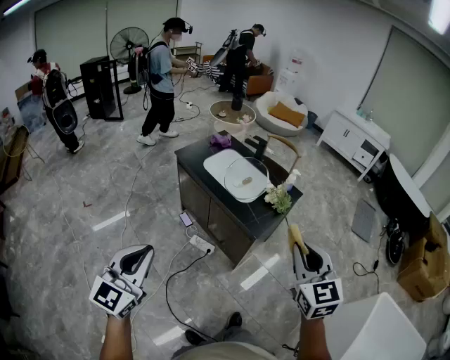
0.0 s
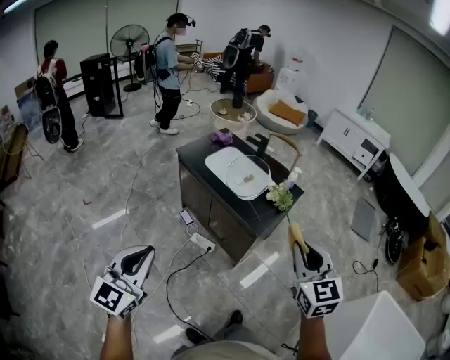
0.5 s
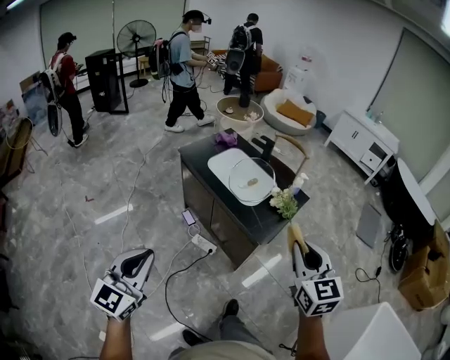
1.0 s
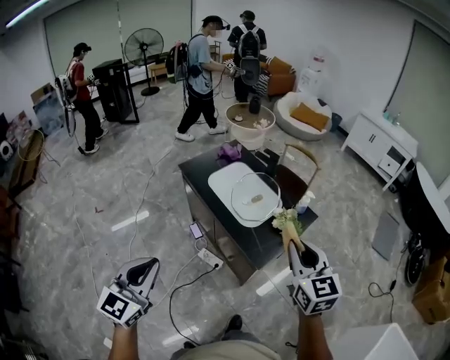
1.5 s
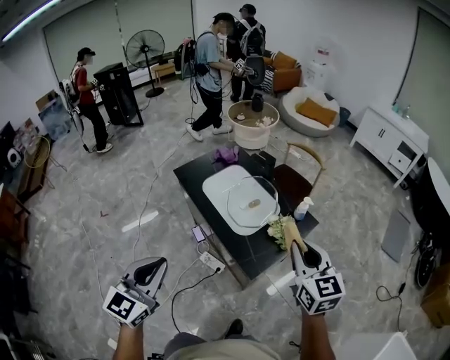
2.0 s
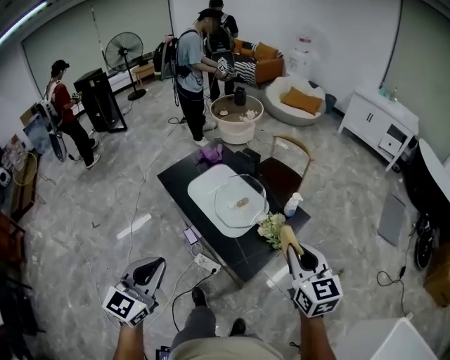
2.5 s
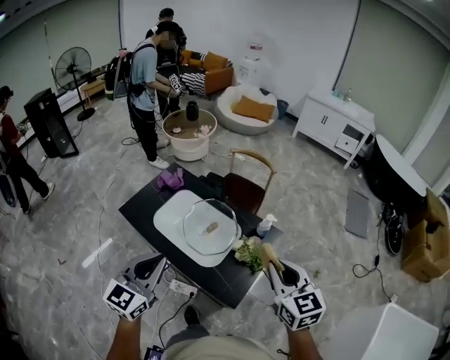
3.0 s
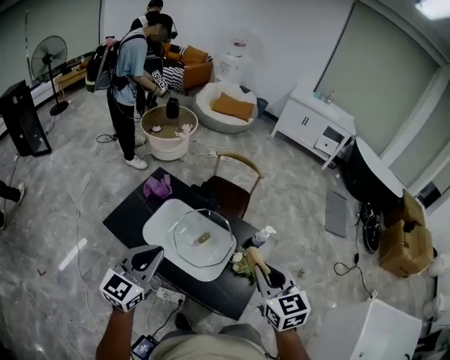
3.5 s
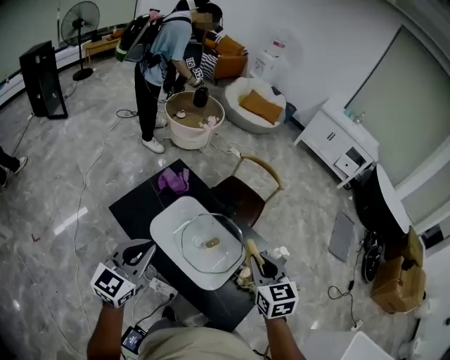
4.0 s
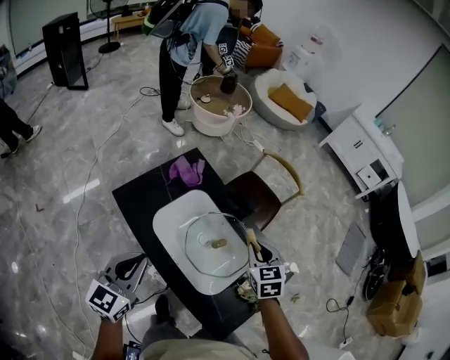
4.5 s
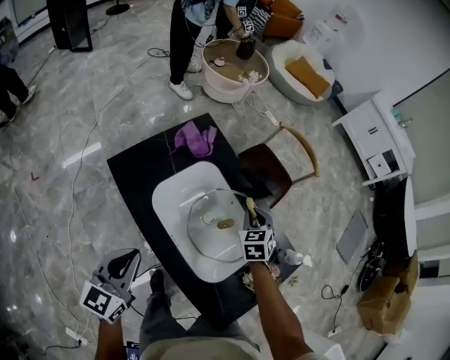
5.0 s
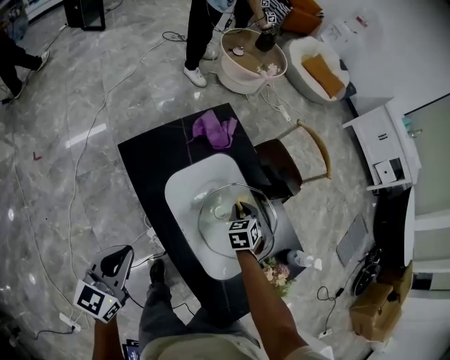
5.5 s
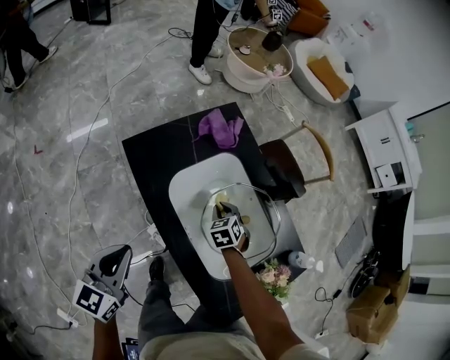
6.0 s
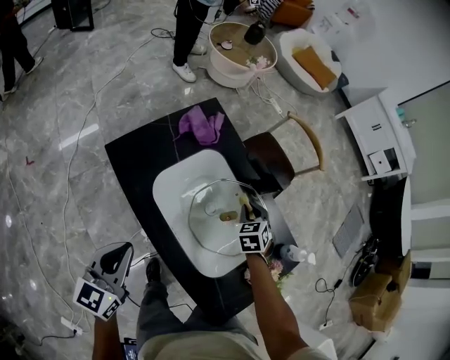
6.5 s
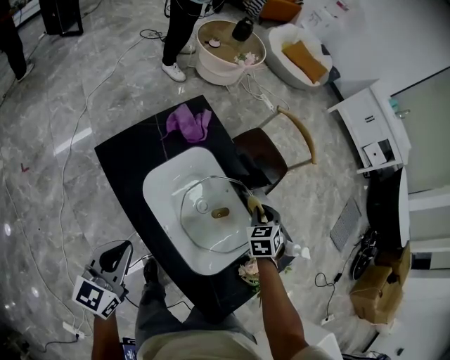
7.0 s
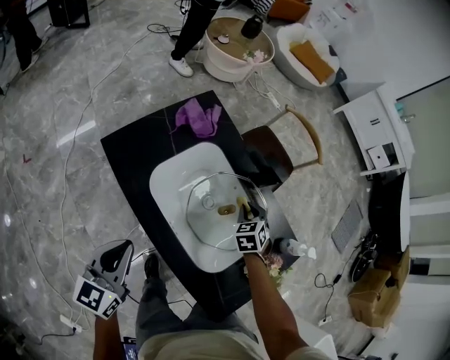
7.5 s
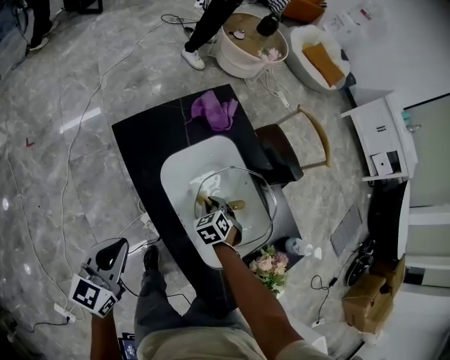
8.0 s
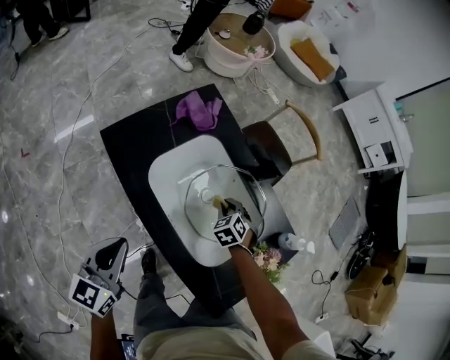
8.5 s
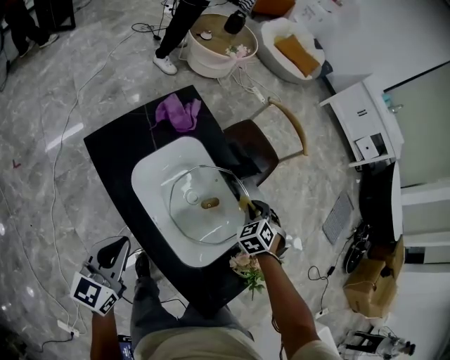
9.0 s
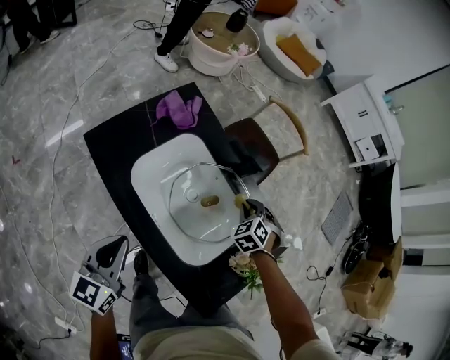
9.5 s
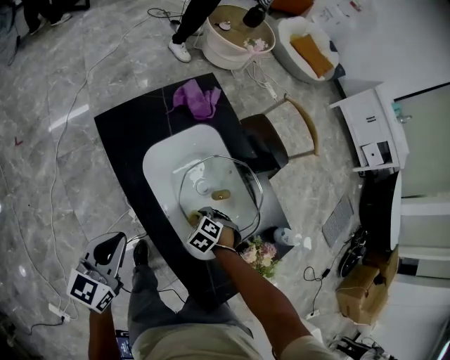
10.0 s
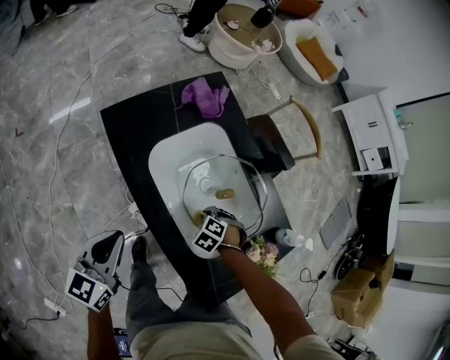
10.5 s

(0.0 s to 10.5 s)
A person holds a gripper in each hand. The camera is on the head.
0.0 s - 2.0 s: The right gripper heads forward, covering some 30 cm. The left gripper heads forward and to the right, covering about 25 cm.
2.0 s - 4.0 s: The right gripper heads forward and to the left, covering about 30 cm, and rotates some 20 degrees, while the left gripper shifts some 40 cm forward, and swivels about 20 degrees.
4.0 s - 6.5 s: The right gripper goes about 35 cm downward and forward, and changes its angle by roughly 30 degrees. The left gripper goes some 15 cm downward, and changes its angle by about 30 degrees.
6.5 s - 8.5 s: The right gripper moves left and right over about 20 cm, changing direction 2 times.
8.5 s - 10.5 s: The right gripper shifts by about 10 cm, and turns by approximately 30 degrees.

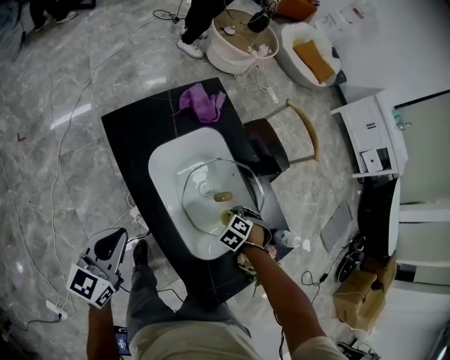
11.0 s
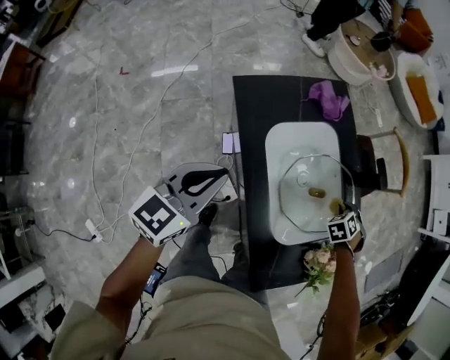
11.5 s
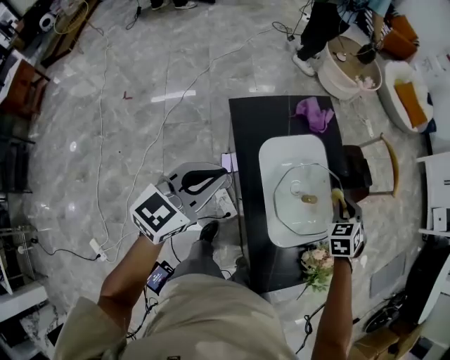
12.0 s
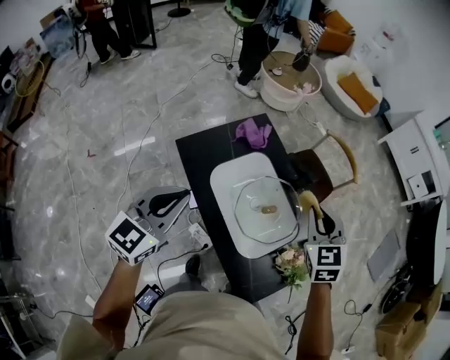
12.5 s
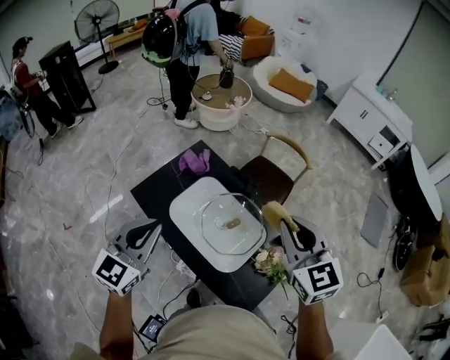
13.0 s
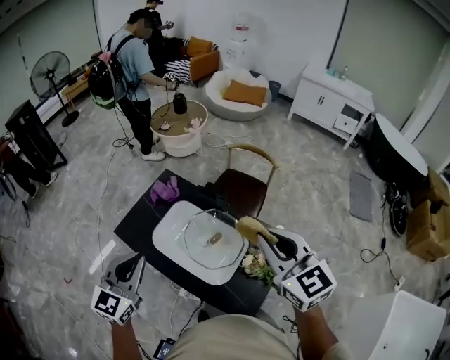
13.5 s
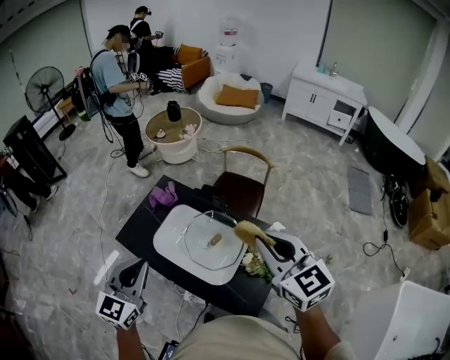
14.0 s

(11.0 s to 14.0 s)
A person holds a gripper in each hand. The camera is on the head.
11.0 s - 12.5 s: The right gripper travels upward by some 40 cm, and angles its fingers upward, by about 50 degrees. Meanwhile the left gripper travels upward by some 20 cm, and rotates approximately 20 degrees.
12.5 s - 14.0 s: The right gripper heads upward, backward and to the right, covering some 25 cm, and rotates roughly 30 degrees, while the left gripper moves to the right, approximately 10 cm.

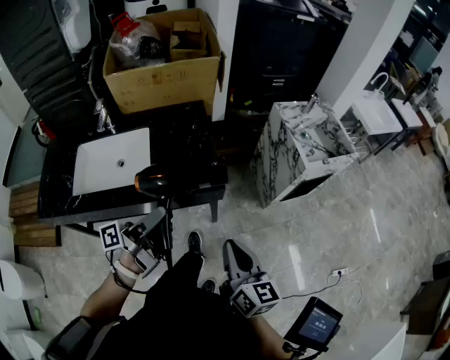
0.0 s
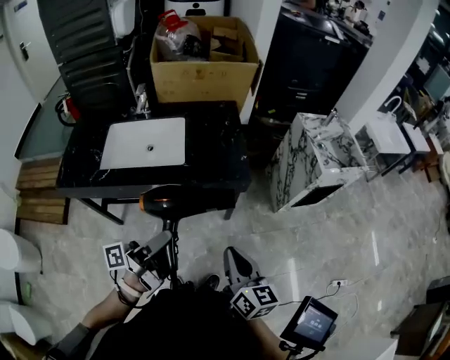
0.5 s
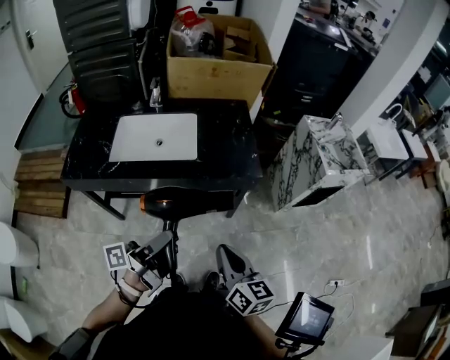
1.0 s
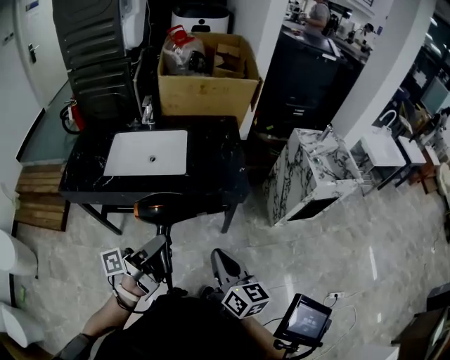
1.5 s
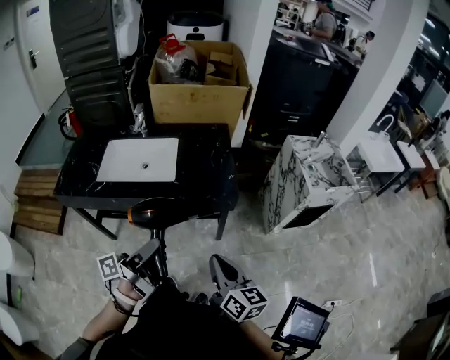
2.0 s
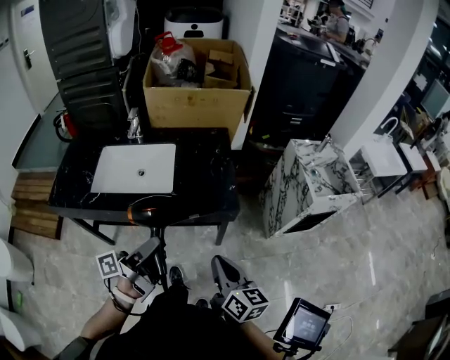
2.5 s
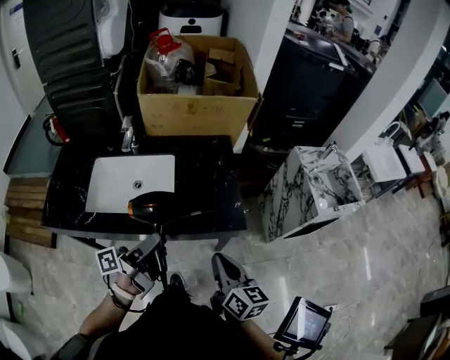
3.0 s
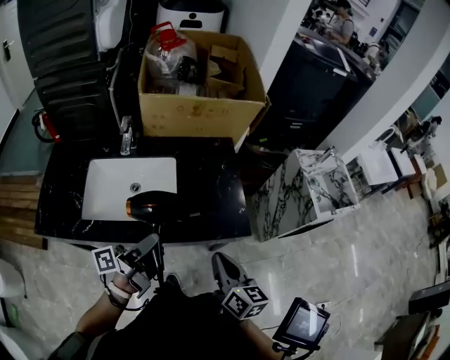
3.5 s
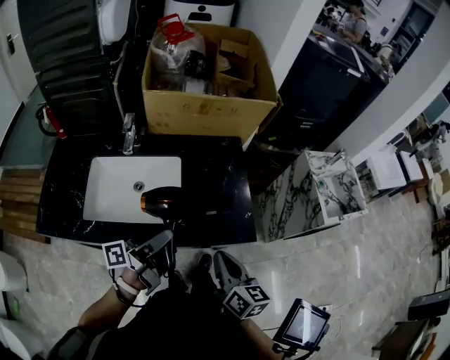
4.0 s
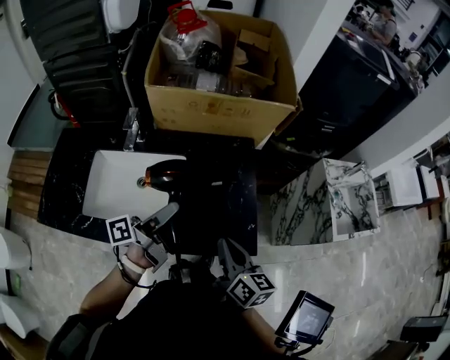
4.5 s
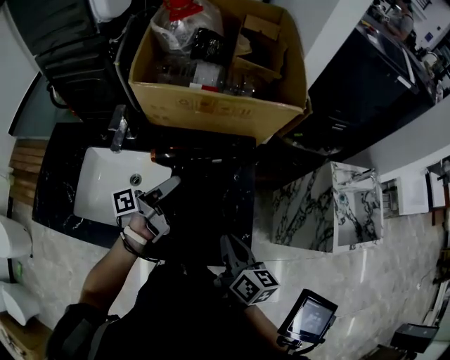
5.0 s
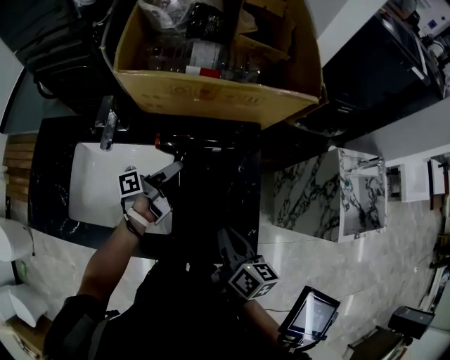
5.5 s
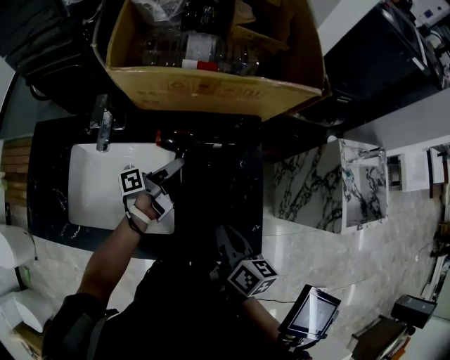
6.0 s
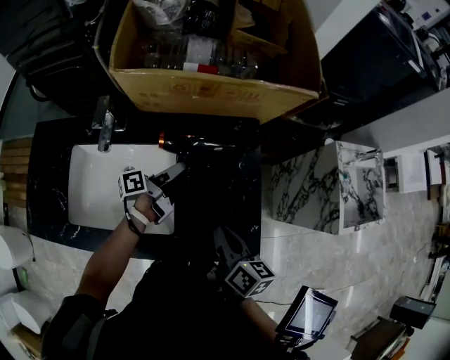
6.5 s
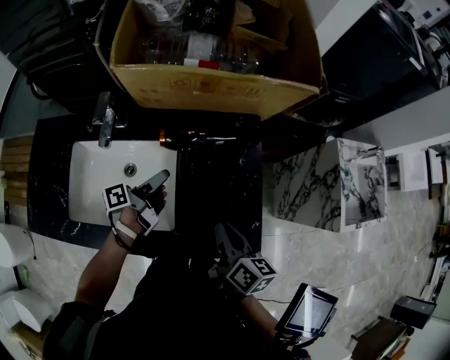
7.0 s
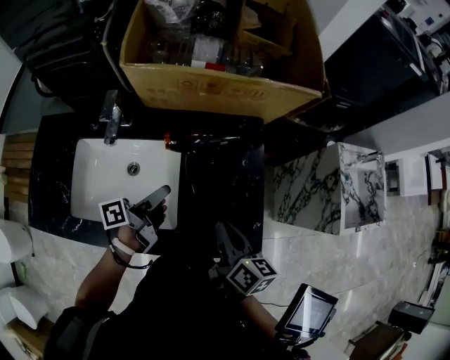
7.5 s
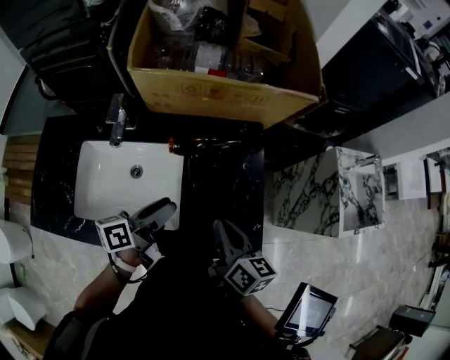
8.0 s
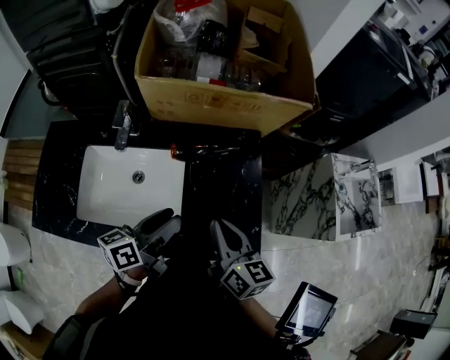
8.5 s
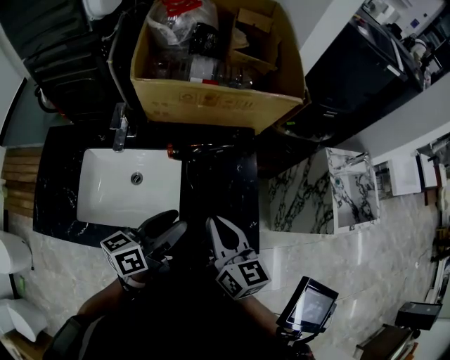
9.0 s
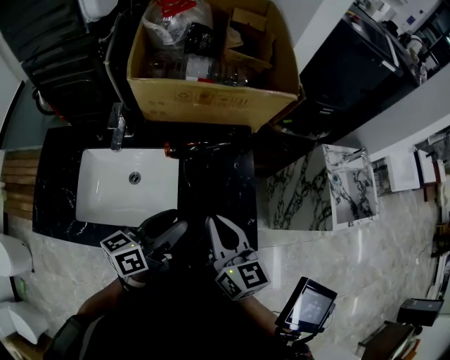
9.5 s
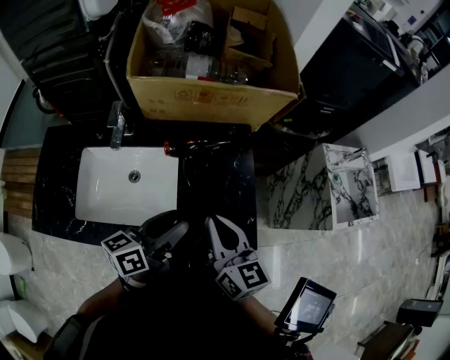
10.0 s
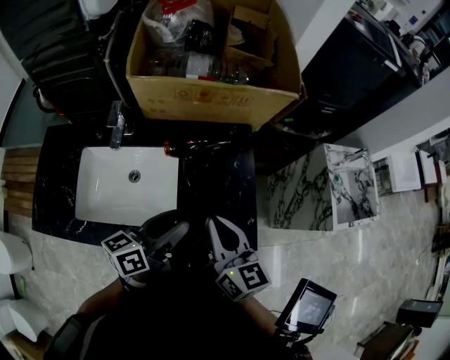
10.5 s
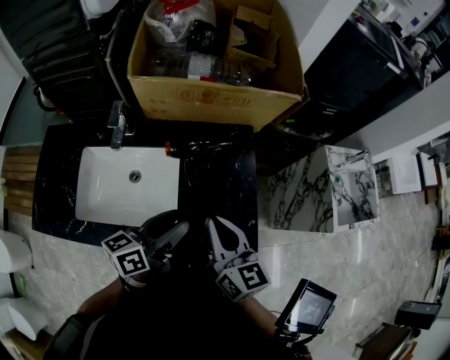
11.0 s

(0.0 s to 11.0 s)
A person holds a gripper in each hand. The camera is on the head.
2.0 s - 3.5 s: The right gripper shifts by roughly 25 cm.
3.5 s - 5.5 s: The right gripper changes place by roughly 25 cm.
7.5 s - 9.0 s: The right gripper shifts about 10 cm upward, and changes its angle by approximately 20 degrees.

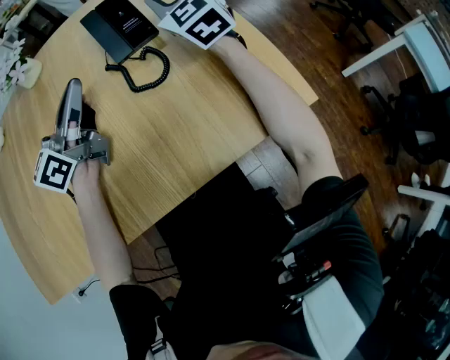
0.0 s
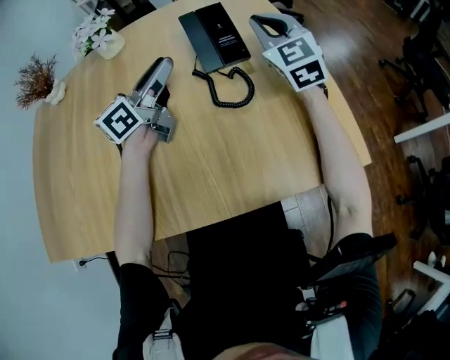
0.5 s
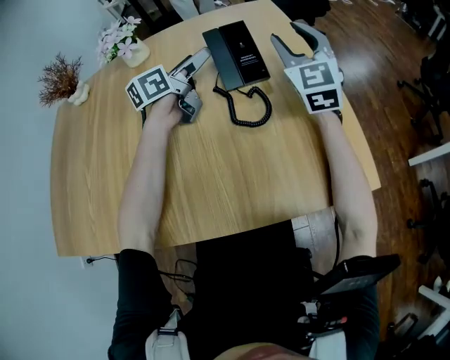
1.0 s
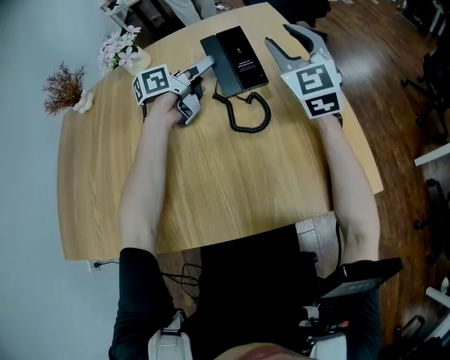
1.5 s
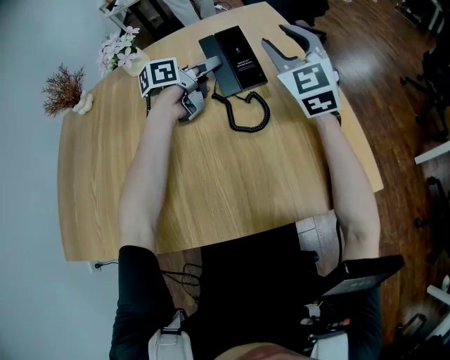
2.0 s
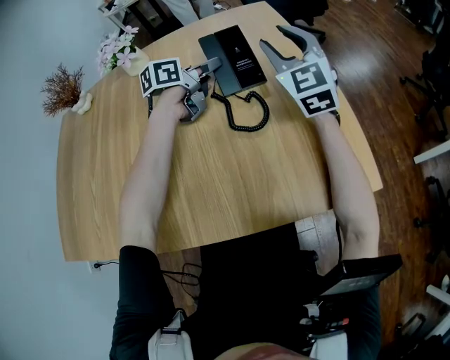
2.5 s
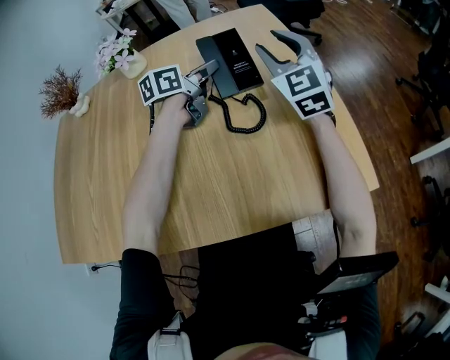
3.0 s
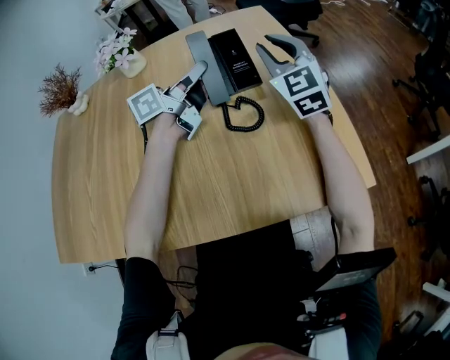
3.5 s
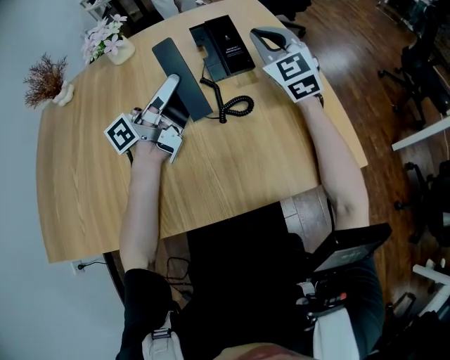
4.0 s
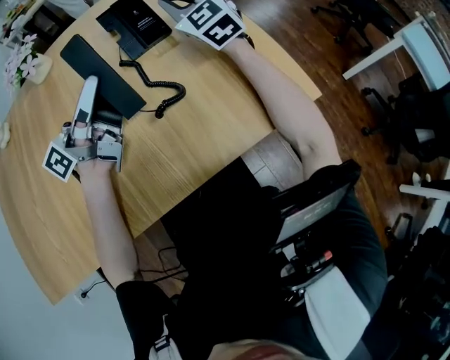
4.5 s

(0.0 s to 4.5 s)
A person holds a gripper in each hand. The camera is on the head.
0.0 s - 2.0 s: The left gripper moves forward and downward, roughly 20 cm, angles its fingers downward, by roughly 30 degrees, and opens up; the right gripper heads to the right, covering some 5 cm, and opens.
2.0 s - 4.5 s: The left gripper shifts about 20 cm backward and upward, and tips its fingers upward by approximately 50 degrees; the right gripper closes its fingers.
